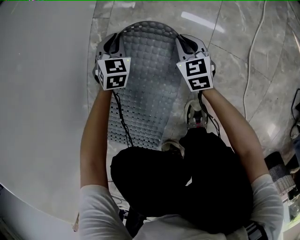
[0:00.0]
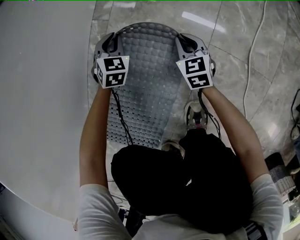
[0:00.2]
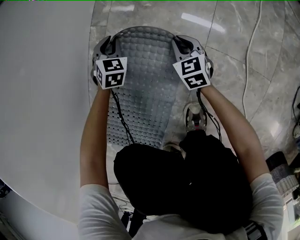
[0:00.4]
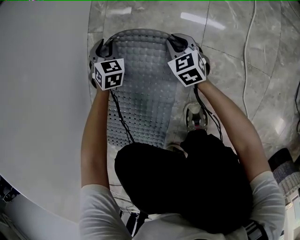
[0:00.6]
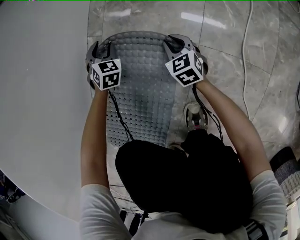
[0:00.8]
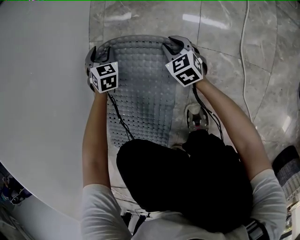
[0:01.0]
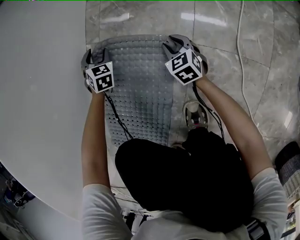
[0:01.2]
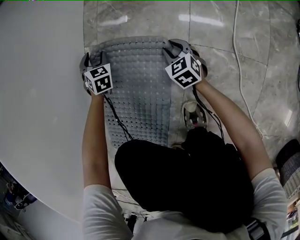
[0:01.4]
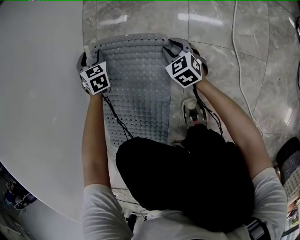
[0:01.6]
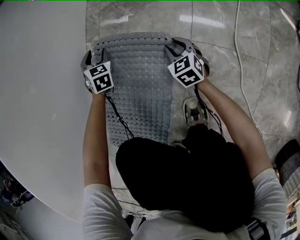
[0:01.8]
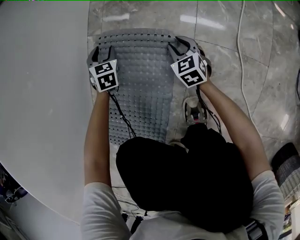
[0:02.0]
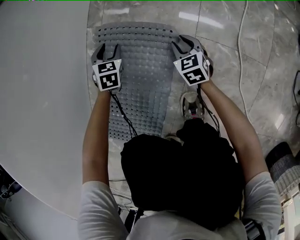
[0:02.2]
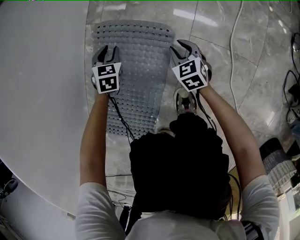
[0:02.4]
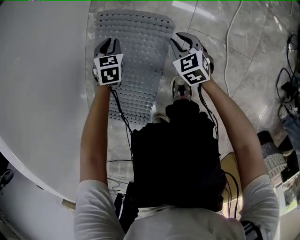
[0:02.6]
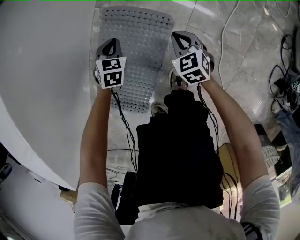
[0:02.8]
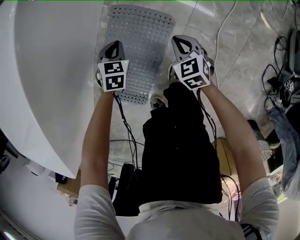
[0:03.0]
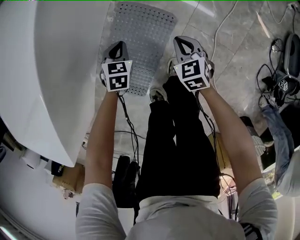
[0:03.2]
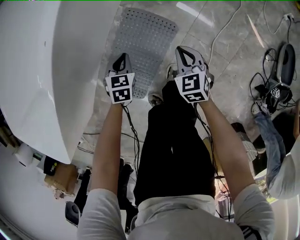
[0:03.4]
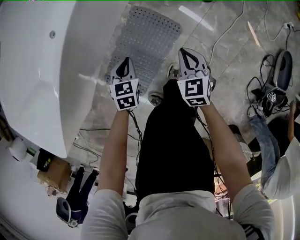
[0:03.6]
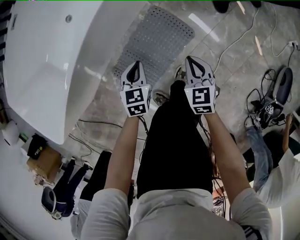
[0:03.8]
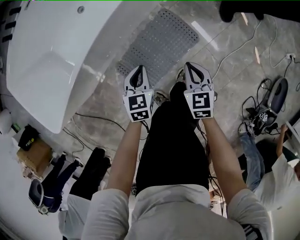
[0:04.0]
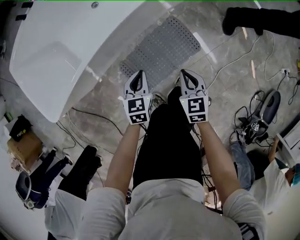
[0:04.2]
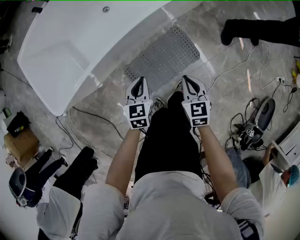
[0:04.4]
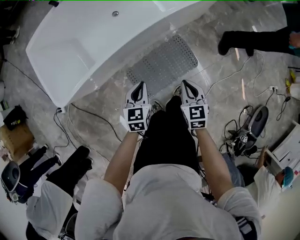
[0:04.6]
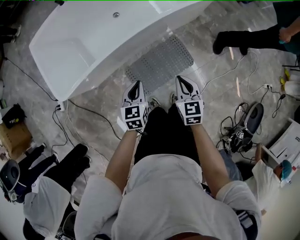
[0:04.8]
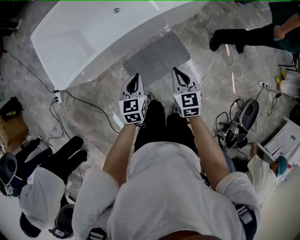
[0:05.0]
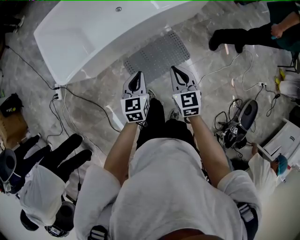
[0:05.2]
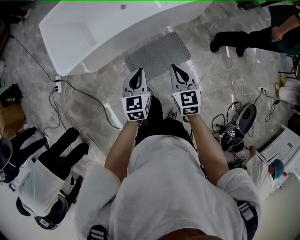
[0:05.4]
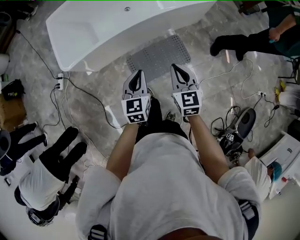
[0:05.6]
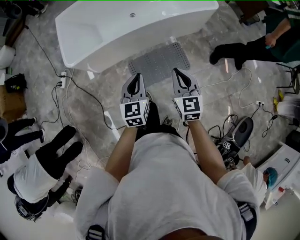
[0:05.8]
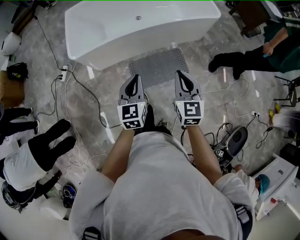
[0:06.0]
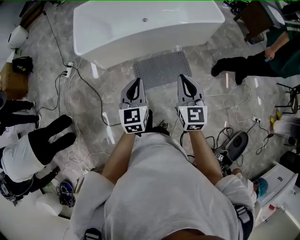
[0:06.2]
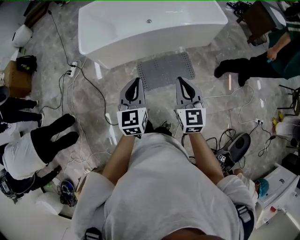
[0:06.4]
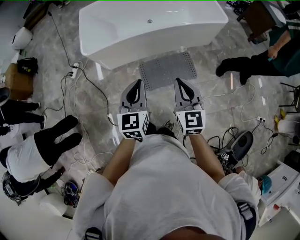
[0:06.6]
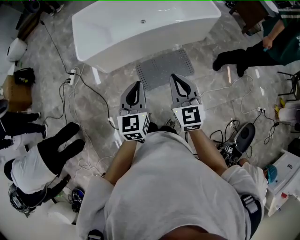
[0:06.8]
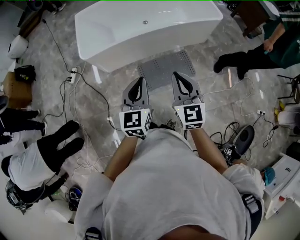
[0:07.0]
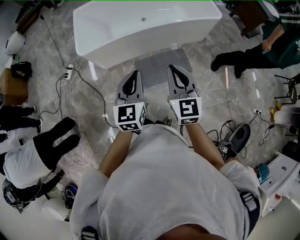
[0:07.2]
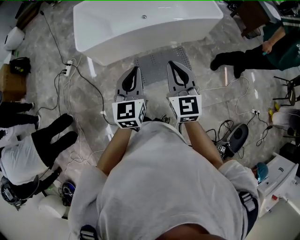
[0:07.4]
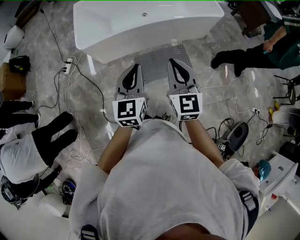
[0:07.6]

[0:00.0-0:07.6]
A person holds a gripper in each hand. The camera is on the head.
0:00.0 to 0:01.6: The right gripper opens up. Meanwhile the left gripper is displaced forward by about 5 cm, and opens its fingers.
0:01.6 to 0:03.0: The right gripper is displaced upward by some 25 cm, and closes. Meanwhile the left gripper goes about 25 cm upward and backward, changes its angle by approximately 20 degrees, and closes its fingers.
0:03.0 to 0:04.6: The right gripper heads upward and to the left, covering about 50 cm, and swivels approximately 20 degrees. The left gripper goes roughly 50 cm upward, backward and to the left, and rolls counterclockwise, seen from behind, by approximately 40 degrees.
0:04.6 to 0:06.0: The two grippers go some 35 cm upward and backward. The left gripper rotates approximately 30 degrees. The right gripper turns by about 30 degrees.
0:06.0 to 0:07.6: The left gripper goes some 10 cm upward and to the left. Meanwhile the right gripper heads to the left and upward, covering approximately 15 cm.

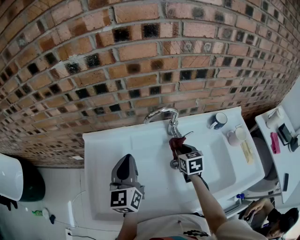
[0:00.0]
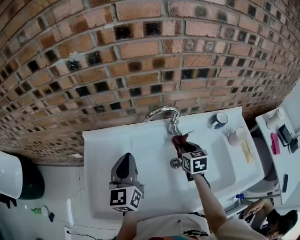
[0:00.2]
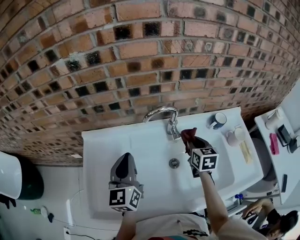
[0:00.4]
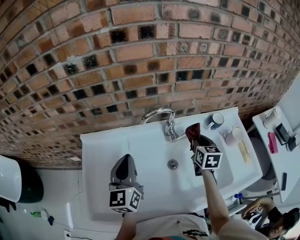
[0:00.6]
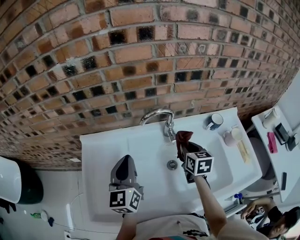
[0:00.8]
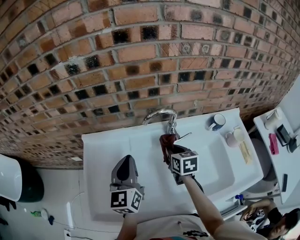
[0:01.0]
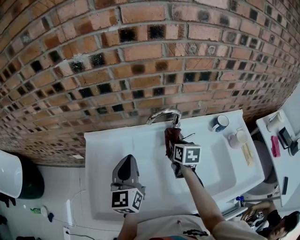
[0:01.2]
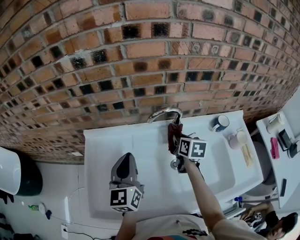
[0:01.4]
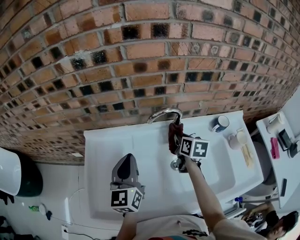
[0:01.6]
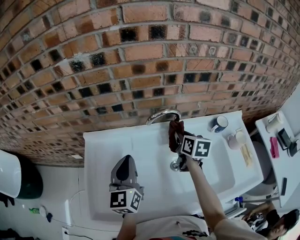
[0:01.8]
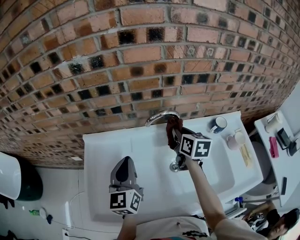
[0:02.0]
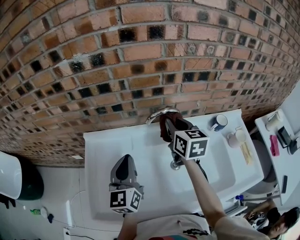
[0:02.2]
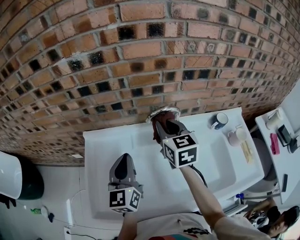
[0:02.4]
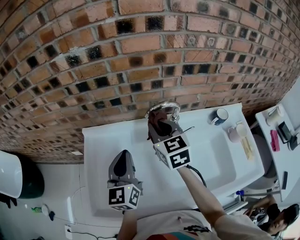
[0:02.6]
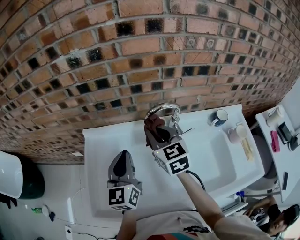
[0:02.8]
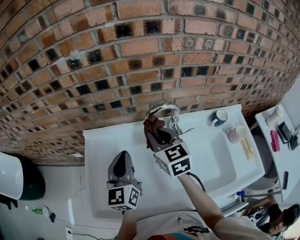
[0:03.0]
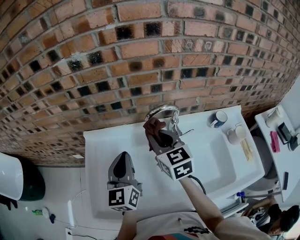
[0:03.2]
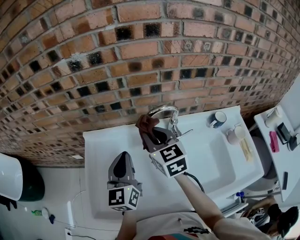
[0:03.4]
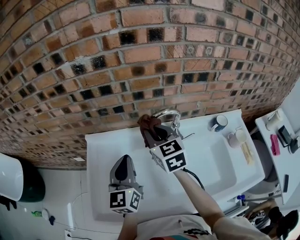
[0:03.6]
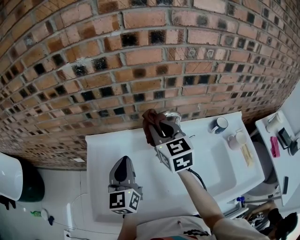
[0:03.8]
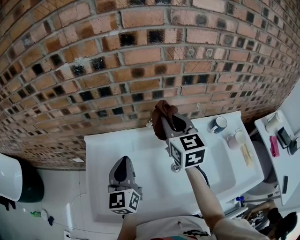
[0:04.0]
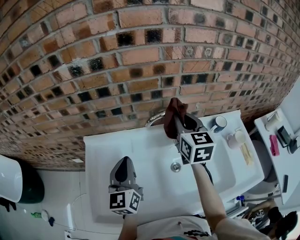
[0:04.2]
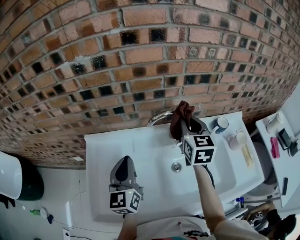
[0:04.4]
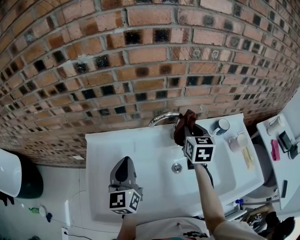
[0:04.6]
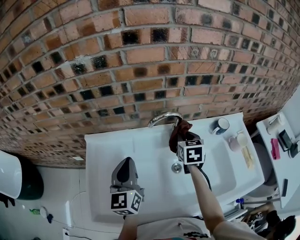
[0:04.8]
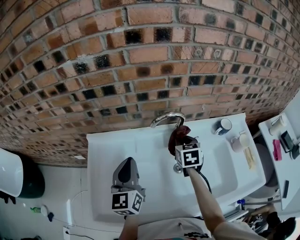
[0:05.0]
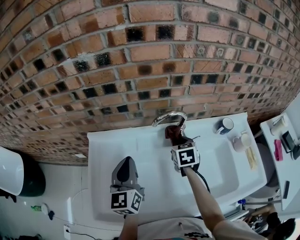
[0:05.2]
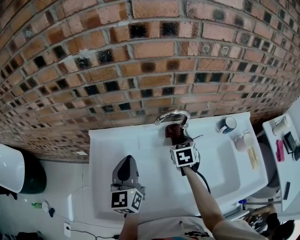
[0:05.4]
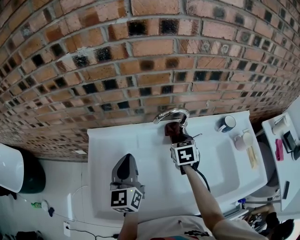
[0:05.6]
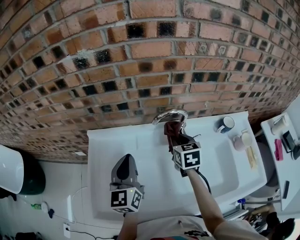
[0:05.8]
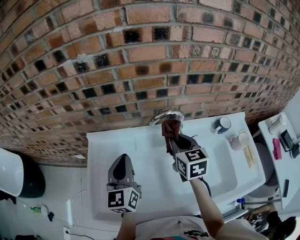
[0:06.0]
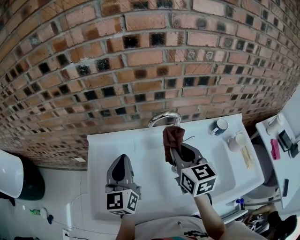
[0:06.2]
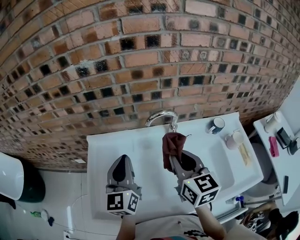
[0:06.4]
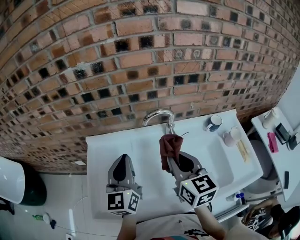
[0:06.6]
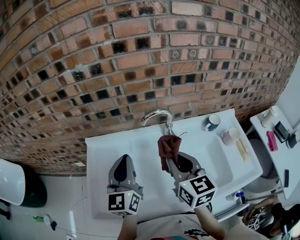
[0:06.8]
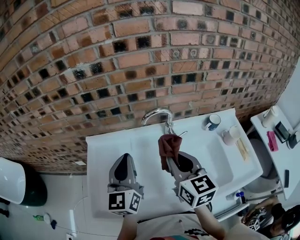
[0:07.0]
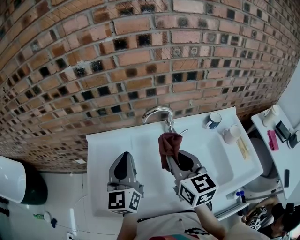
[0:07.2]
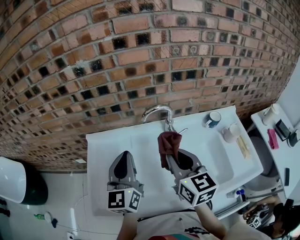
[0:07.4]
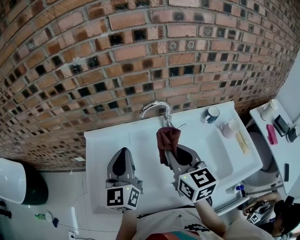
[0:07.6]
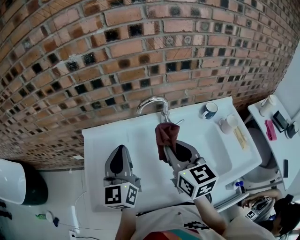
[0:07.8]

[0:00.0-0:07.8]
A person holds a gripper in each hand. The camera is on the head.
0:00.0 to 0:01.6: The right gripper travels upward and forward by roughly 10 cm, and goes to the right and returns, roughly 10 cm each way.
0:01.6 to 0:03.2: The right gripper moves to the left and upward, approximately 15 cm, and changes its angle by about 40 degrees.
0:03.2 to 0:04.6: The right gripper goes some 15 cm to the right, and changes its angle by roughly 30 degrees.
0:04.6 to 0:06.2: The right gripper goes about 15 cm backward and to the left, and moves roughly 10 cm downward and comes back.
0:06.2 to 0:07.8: The left gripper shifts by roughly 5 cm. Meanwhile the right gripper travels backward by about 5 cm.

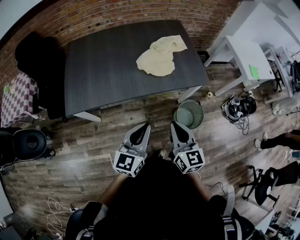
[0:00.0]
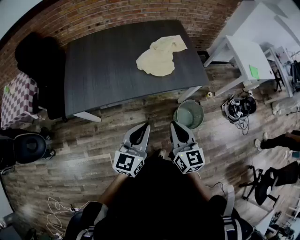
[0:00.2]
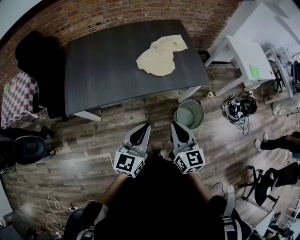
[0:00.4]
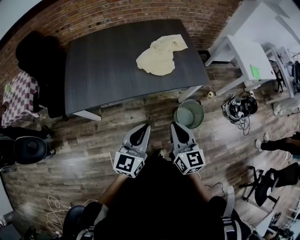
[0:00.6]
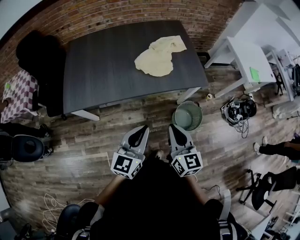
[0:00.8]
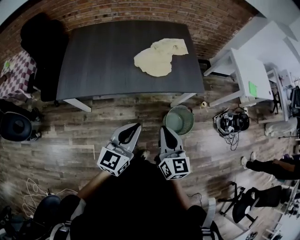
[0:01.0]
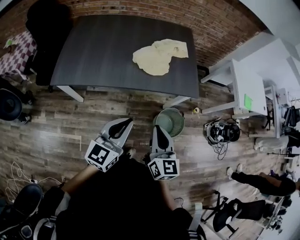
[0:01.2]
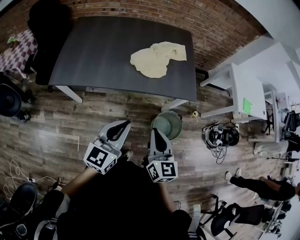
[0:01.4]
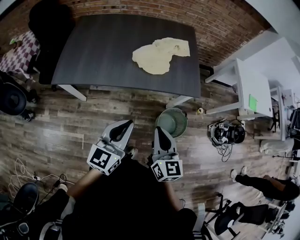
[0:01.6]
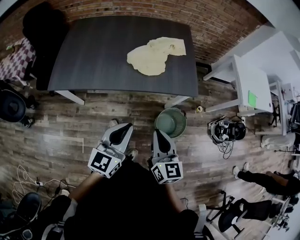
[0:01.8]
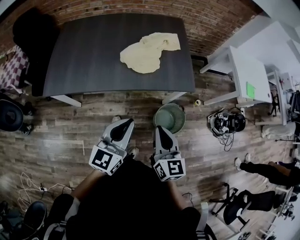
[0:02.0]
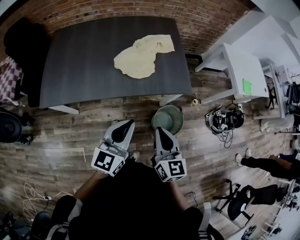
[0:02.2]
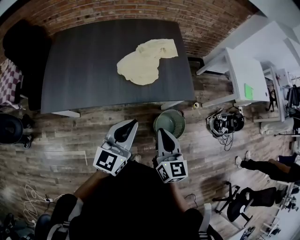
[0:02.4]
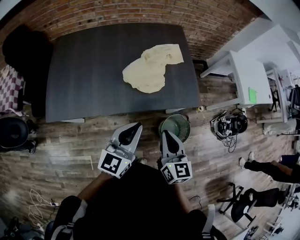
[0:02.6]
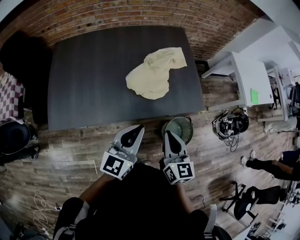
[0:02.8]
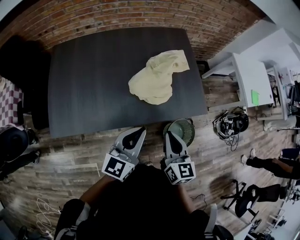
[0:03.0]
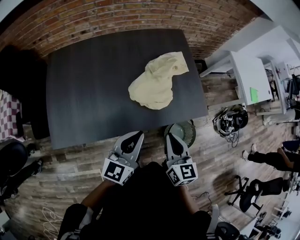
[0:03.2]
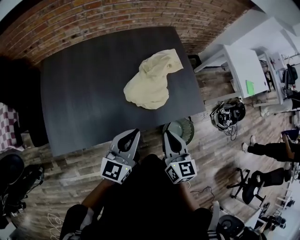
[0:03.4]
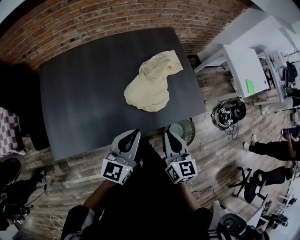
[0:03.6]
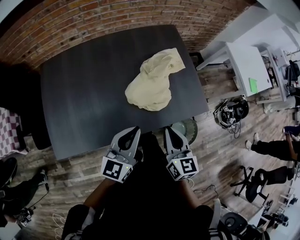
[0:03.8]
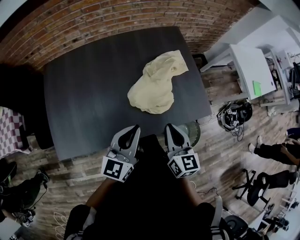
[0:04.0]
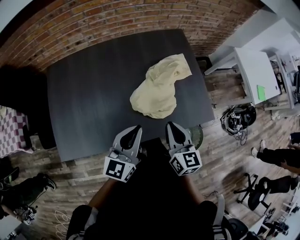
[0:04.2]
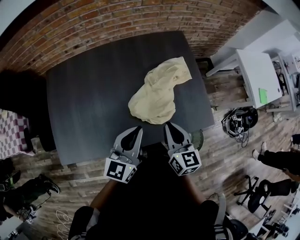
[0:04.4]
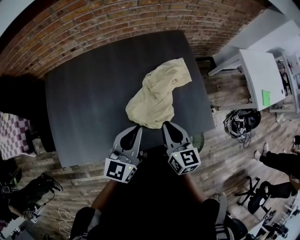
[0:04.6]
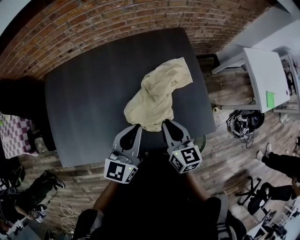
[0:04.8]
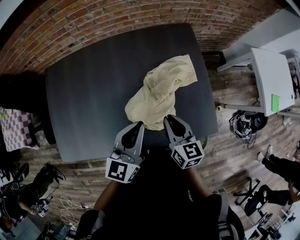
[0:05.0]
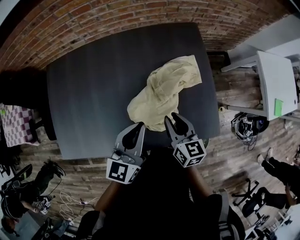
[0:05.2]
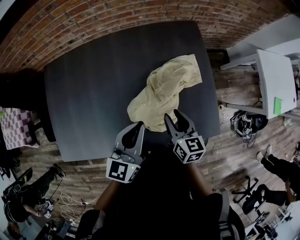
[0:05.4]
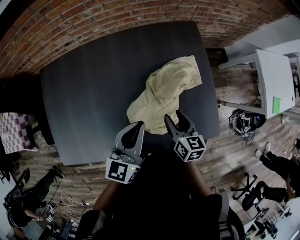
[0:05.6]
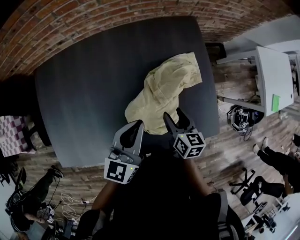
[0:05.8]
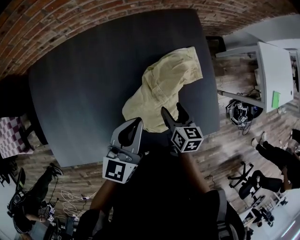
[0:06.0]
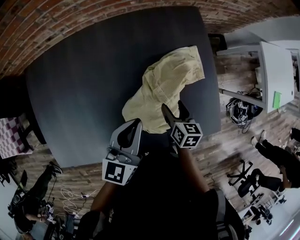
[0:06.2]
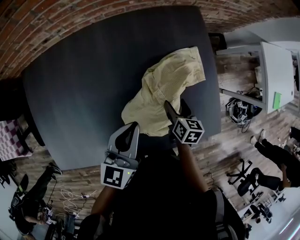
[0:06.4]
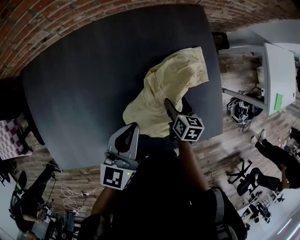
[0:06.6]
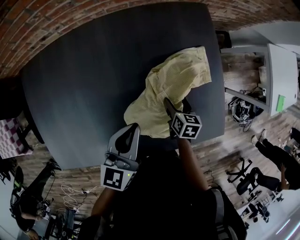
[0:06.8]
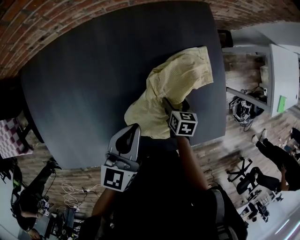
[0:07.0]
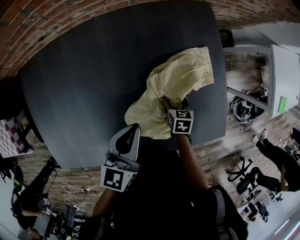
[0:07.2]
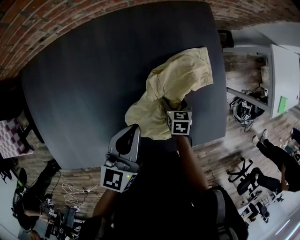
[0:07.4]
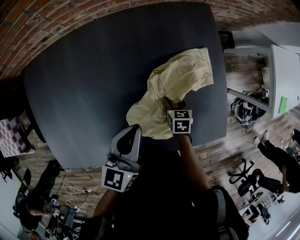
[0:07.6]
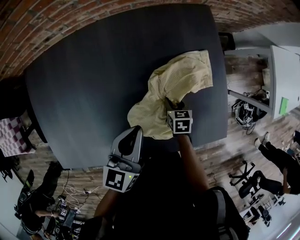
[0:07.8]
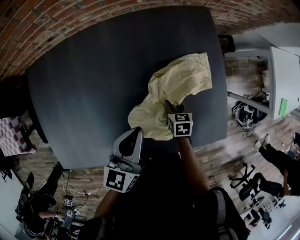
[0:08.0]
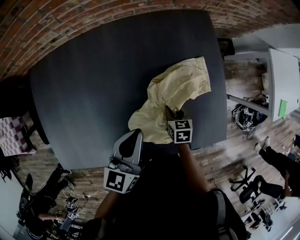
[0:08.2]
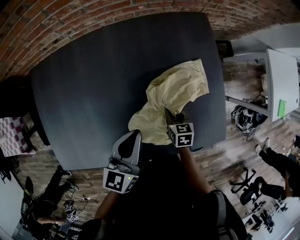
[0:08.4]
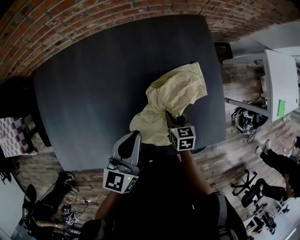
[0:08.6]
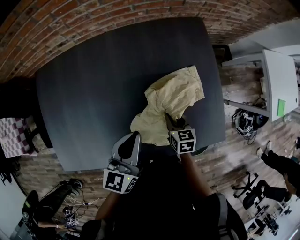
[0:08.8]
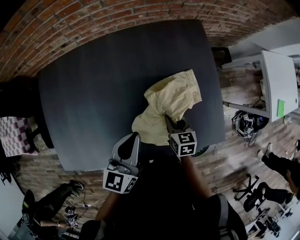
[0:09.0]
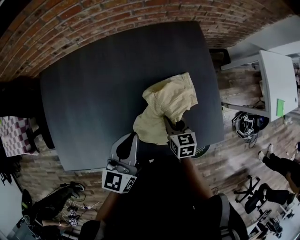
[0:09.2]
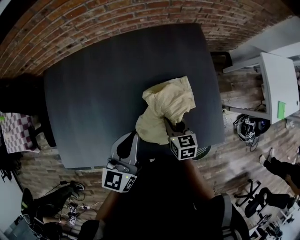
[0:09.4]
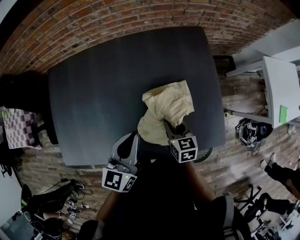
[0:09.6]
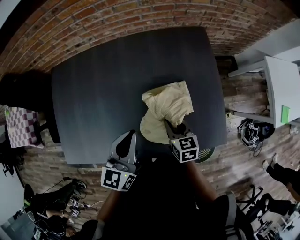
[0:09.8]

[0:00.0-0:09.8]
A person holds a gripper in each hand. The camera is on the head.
0:00.0 to 0:01.4: The grippers both shift to the right by approximately 10 cm.
0:01.4 to 0:02.8: The grippers both shift forward by roughly 20 cm.
0:02.8 to 0:04.2: The grippers both shift forward and to the left by approximately 15 cm.
0:04.2 to 0:05.6: The right gripper moves forward and downward, about 20 cm, and opens up, while the left gripper moves forward, about 15 cm.
0:05.6 to 0:07.0: The left gripper heads downward and forward, covering some 10 cm. Meanwhile the right gripper goes approximately 20 cm downward, turns by some 30 degrees, and opens its fingers.
0:07.0 to 0:08.4: The right gripper moves approximately 5 cm, and closes.
0:08.4 to 0:09.8: The right gripper travels upward and backward by some 15 cm. Meanwhile the left gripper shifts approximately 10 cm backward and upward.
